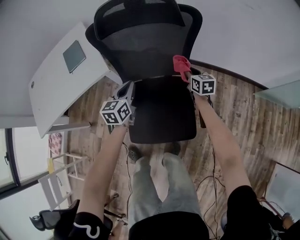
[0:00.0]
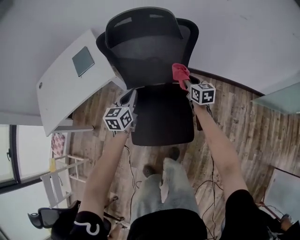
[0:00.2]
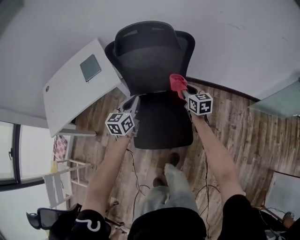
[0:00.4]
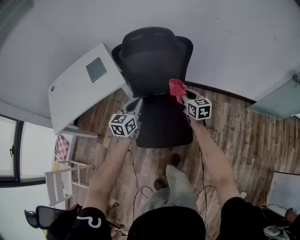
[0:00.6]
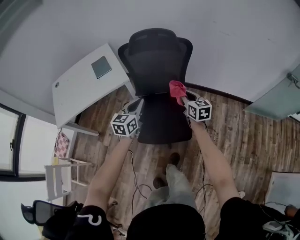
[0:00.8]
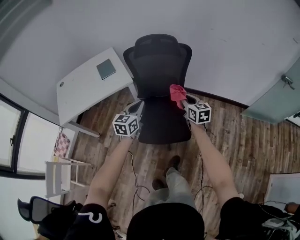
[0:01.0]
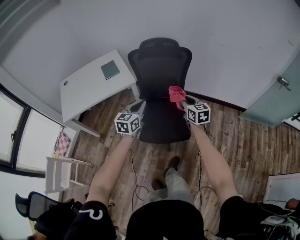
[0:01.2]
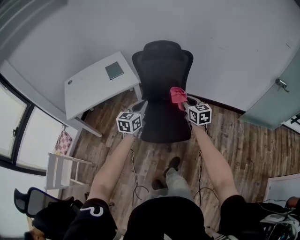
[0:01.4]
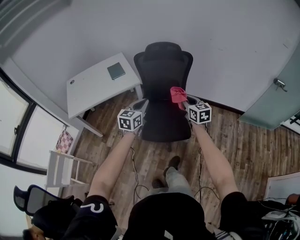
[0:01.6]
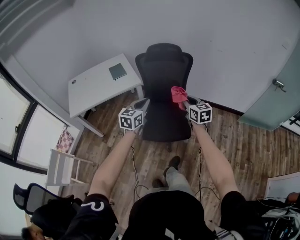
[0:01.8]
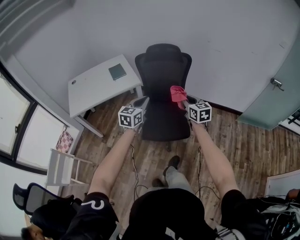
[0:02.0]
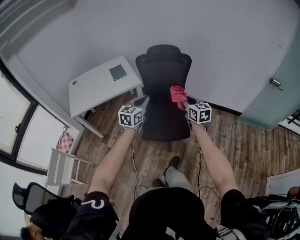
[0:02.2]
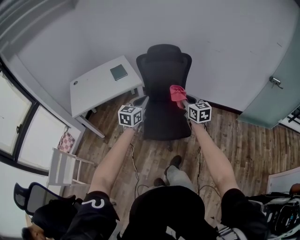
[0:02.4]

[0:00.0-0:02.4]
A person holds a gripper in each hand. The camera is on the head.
0:00.0 to 0:01.2: Both grippers travel together backward and upward, about 40 cm.
0:01.2 to 0:02.4: The grippers both shift backward and upward by roughly 15 cm.

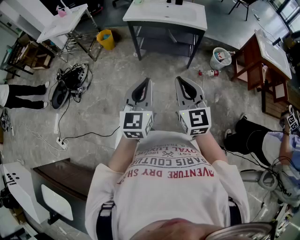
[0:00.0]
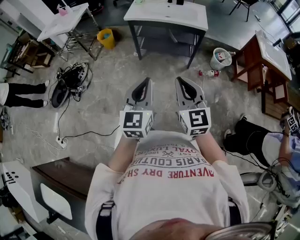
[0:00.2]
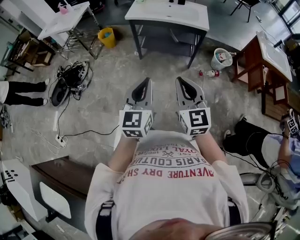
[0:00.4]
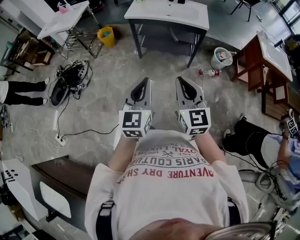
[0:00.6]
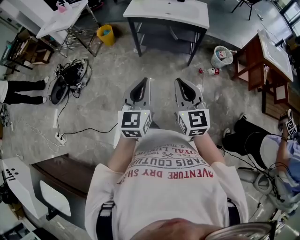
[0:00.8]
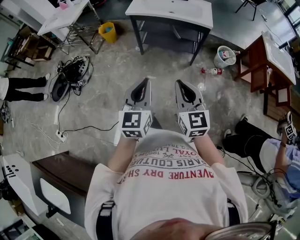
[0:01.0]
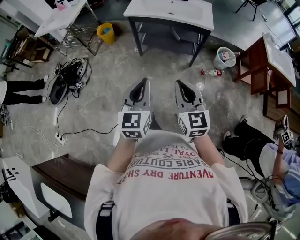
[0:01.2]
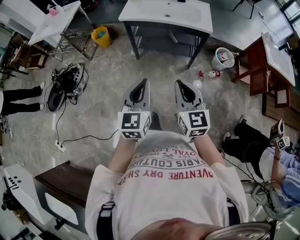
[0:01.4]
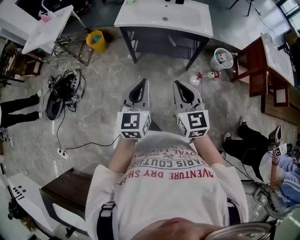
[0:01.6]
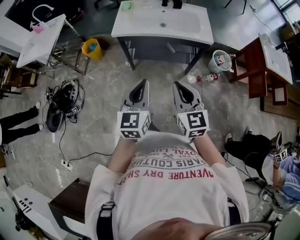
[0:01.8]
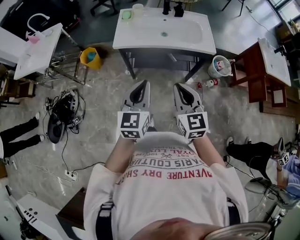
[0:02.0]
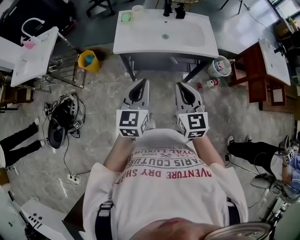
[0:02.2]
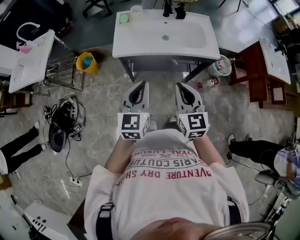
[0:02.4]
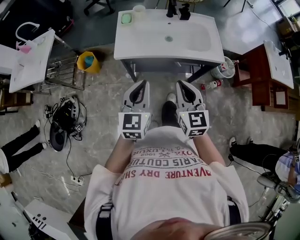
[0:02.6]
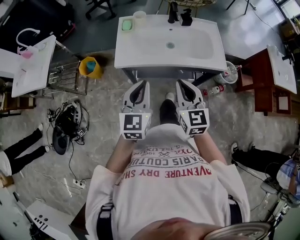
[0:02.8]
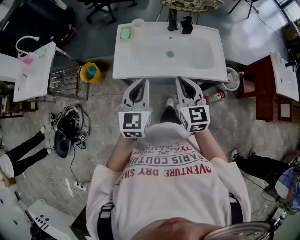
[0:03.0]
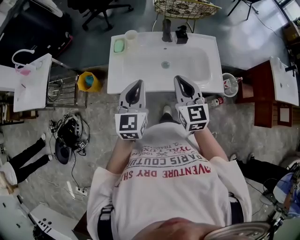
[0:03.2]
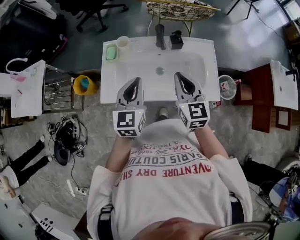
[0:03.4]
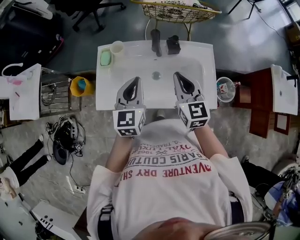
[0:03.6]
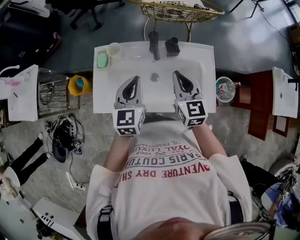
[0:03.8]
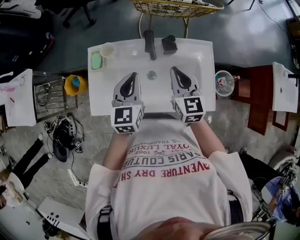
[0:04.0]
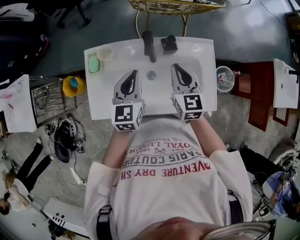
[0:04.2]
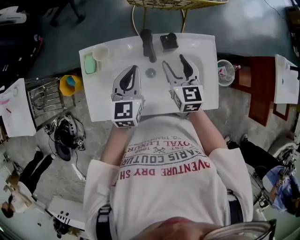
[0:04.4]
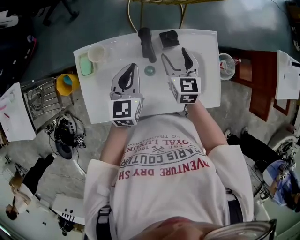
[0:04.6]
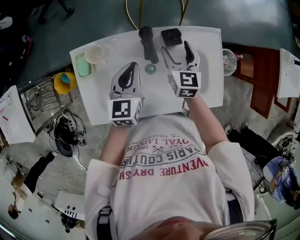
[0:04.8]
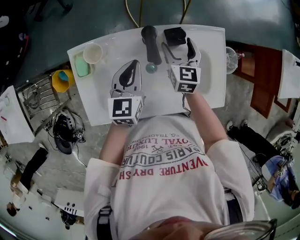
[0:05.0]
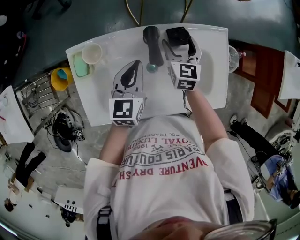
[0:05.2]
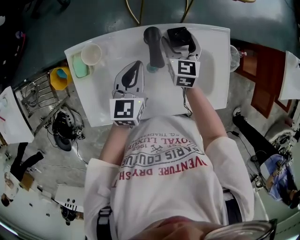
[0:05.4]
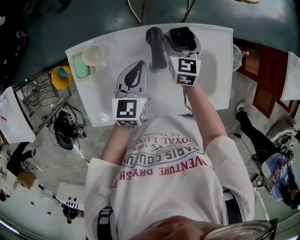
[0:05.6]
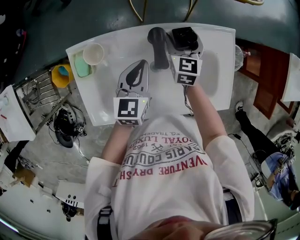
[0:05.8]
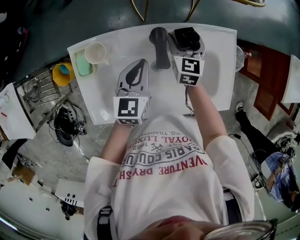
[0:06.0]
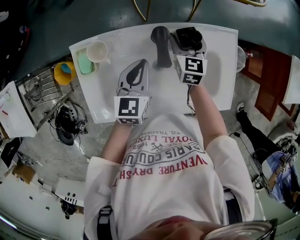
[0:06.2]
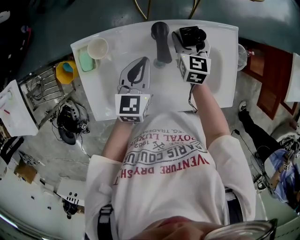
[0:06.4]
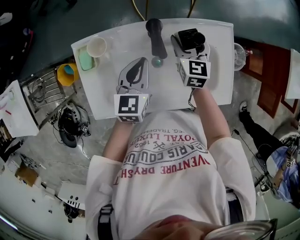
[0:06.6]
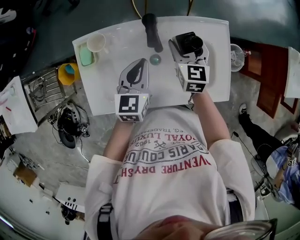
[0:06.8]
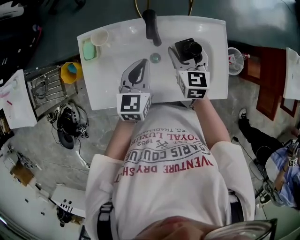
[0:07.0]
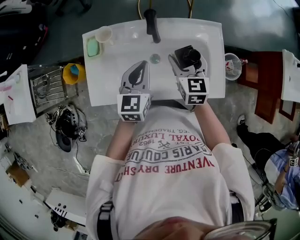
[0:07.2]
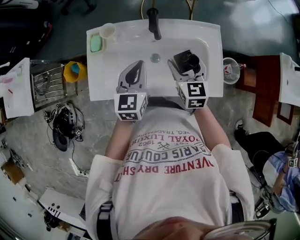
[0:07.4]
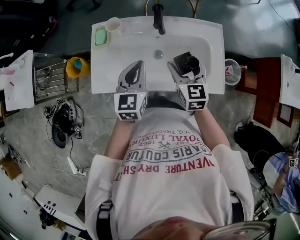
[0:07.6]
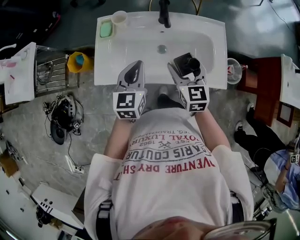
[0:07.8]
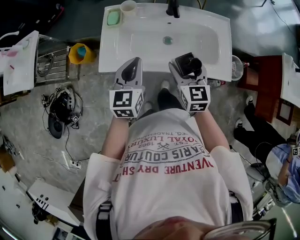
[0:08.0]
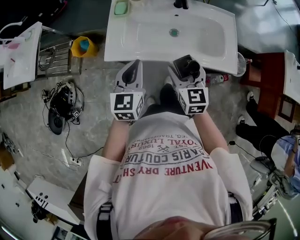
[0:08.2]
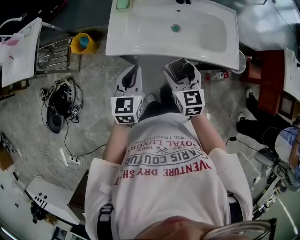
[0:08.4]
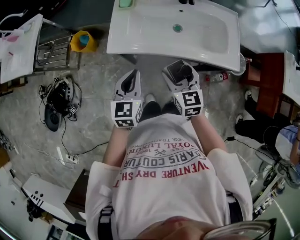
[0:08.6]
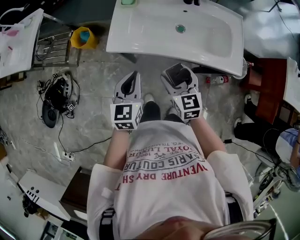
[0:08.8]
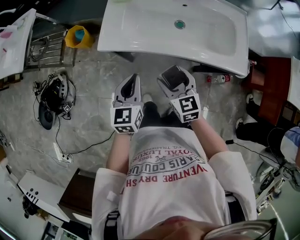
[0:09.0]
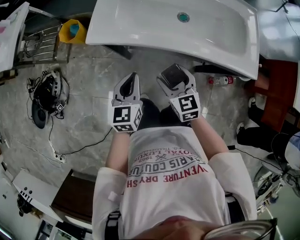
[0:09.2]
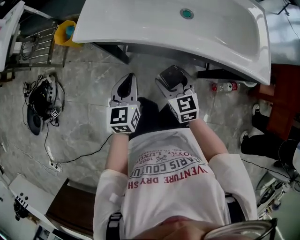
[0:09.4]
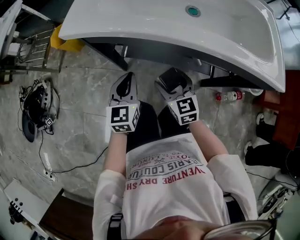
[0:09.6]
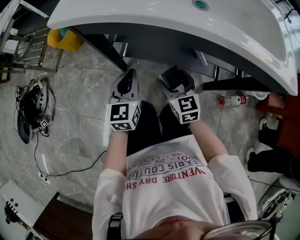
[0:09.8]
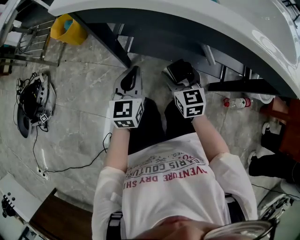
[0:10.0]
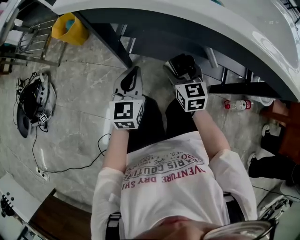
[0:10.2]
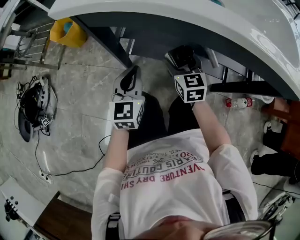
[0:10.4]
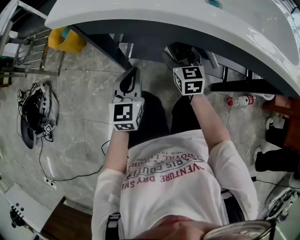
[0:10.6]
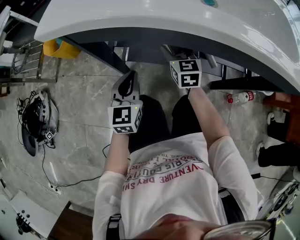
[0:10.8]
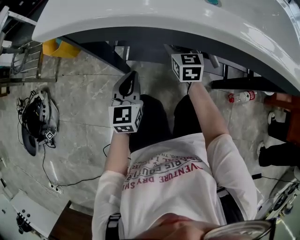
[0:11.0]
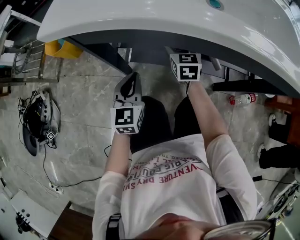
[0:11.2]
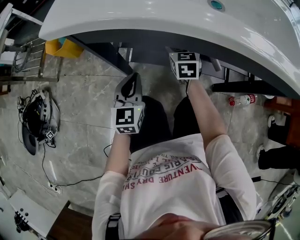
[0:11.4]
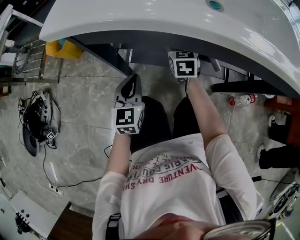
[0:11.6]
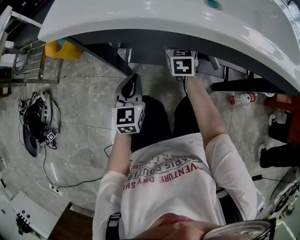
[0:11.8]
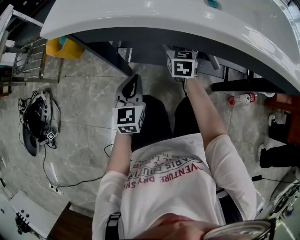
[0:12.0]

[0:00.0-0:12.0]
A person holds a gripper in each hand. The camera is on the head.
0:00.0 to 0:01.6: The two grippers go roughly 20 cm forward.
0:01.6 to 0:03.0: Both grippers are carried forward, roughly 40 cm.
0:03.0 to 0:04.4: The grippers both shift forward by approximately 30 cm. The right gripper opens up.
0:04.4 to 0:06.0: The right gripper is displaced downward and forward by roughly 15 cm. Meanwhile the left gripper shifts approximately 10 cm downward.
0:06.0 to 0:07.6: Both grippers move backward and upward, roughly 20 cm.
0:07.6 to 0:09.0: The grippers both shift backward, to the left and downward by some 25 cm.
0:09.0 to 0:10.4: Both grippers travel together downward, approximately 30 cm.
0:10.4 to 0:12.0: The right gripper moves forward, approximately 10 cm.

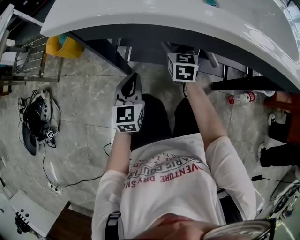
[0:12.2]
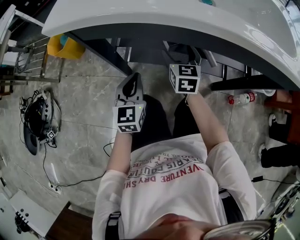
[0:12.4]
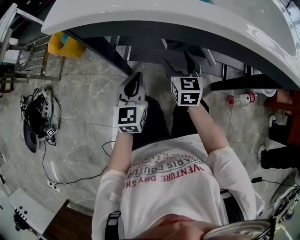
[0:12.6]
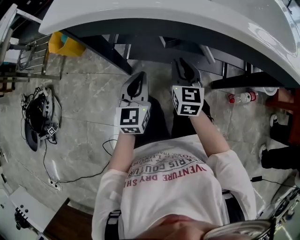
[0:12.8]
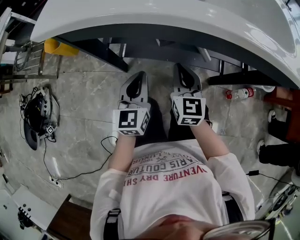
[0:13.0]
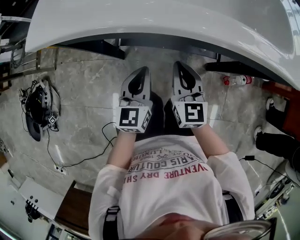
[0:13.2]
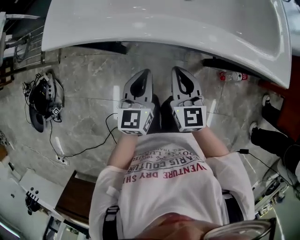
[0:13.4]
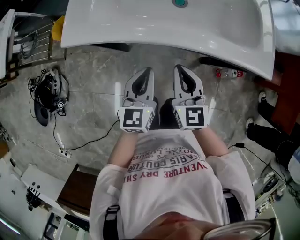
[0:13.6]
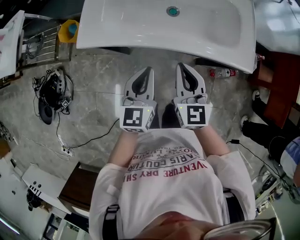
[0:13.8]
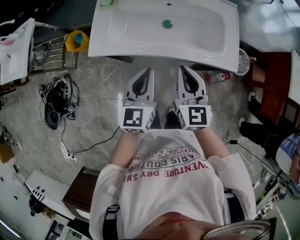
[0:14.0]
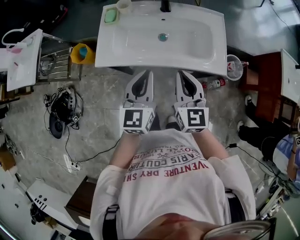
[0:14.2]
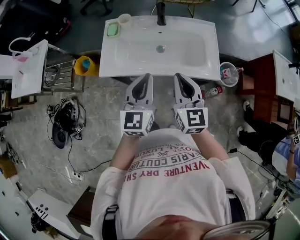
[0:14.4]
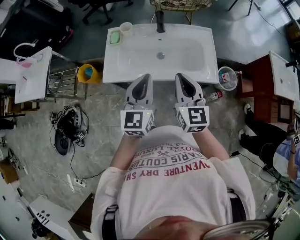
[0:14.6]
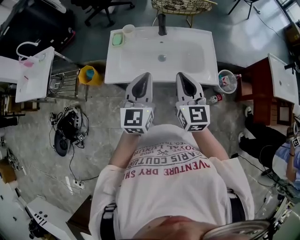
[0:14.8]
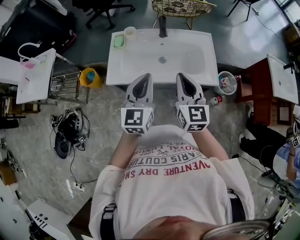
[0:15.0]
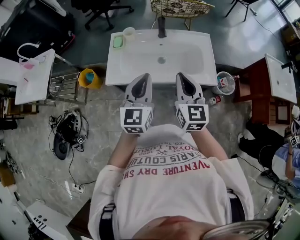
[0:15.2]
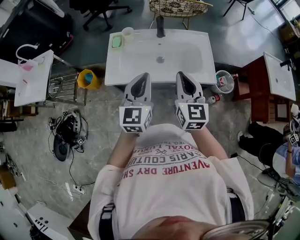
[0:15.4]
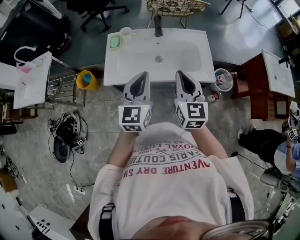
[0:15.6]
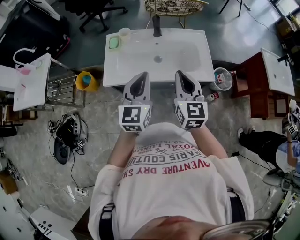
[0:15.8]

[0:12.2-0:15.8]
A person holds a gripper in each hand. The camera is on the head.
0:12.2 to 0:14.0: The two grippers go about 40 cm upward. The right gripper closes its fingers.
0:14.0 to 0:15.8: The grippers both shift upward by roughly 20 cm.

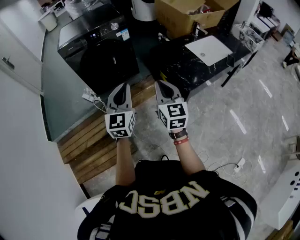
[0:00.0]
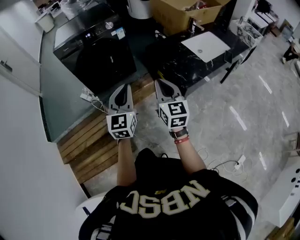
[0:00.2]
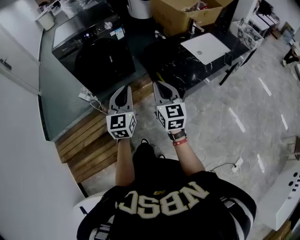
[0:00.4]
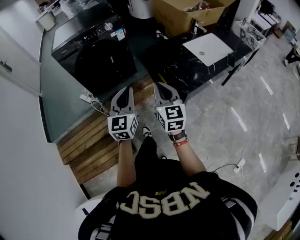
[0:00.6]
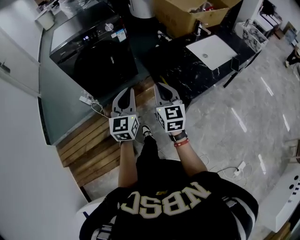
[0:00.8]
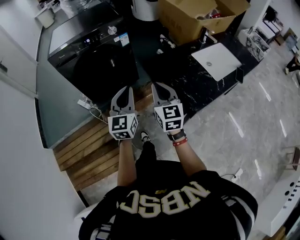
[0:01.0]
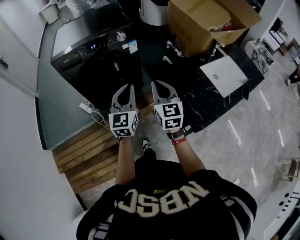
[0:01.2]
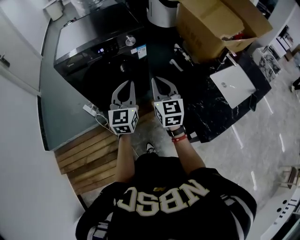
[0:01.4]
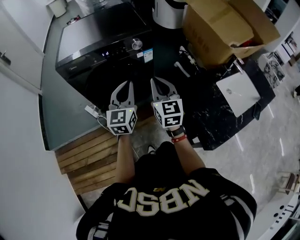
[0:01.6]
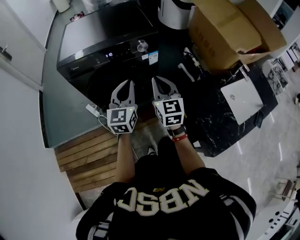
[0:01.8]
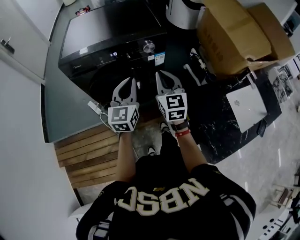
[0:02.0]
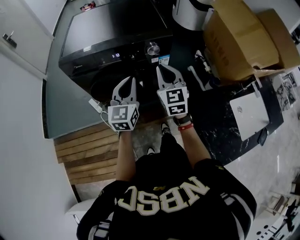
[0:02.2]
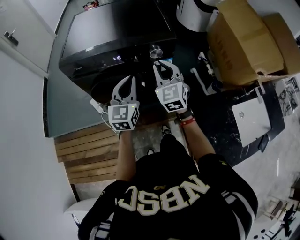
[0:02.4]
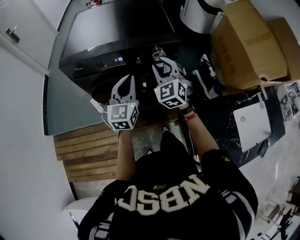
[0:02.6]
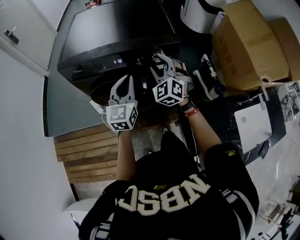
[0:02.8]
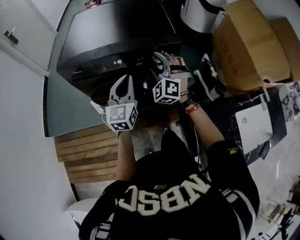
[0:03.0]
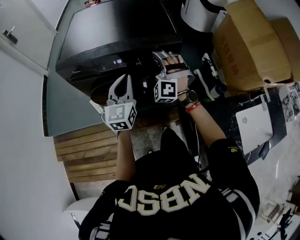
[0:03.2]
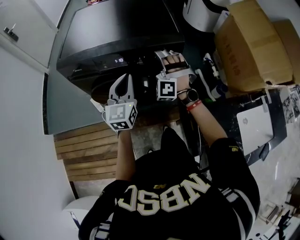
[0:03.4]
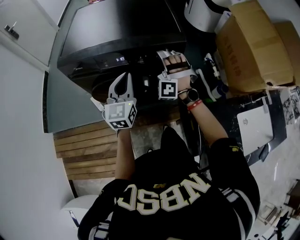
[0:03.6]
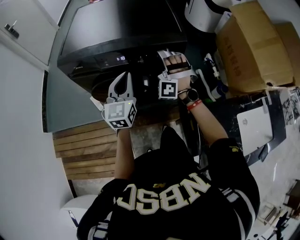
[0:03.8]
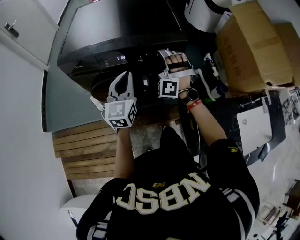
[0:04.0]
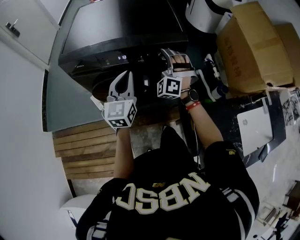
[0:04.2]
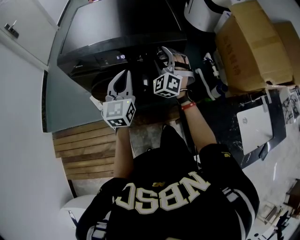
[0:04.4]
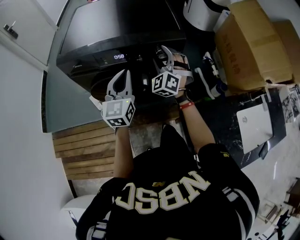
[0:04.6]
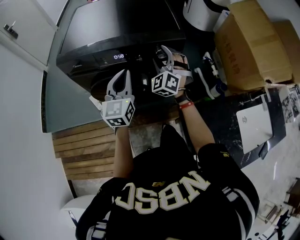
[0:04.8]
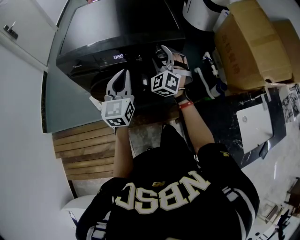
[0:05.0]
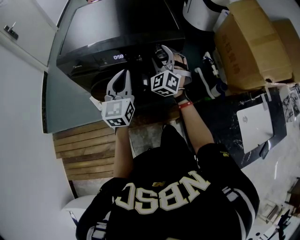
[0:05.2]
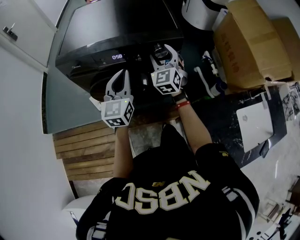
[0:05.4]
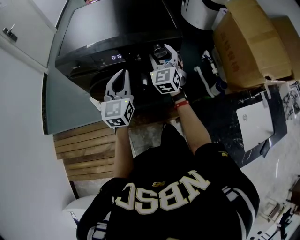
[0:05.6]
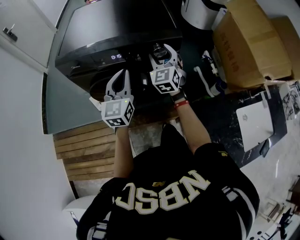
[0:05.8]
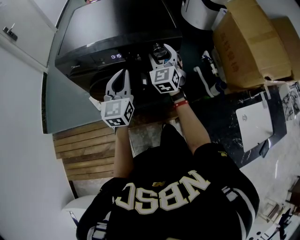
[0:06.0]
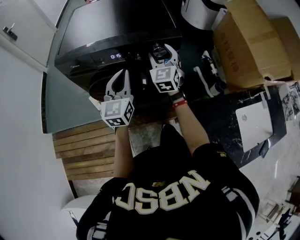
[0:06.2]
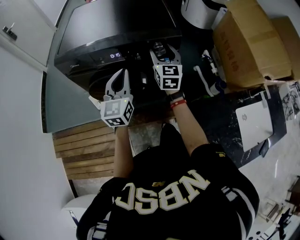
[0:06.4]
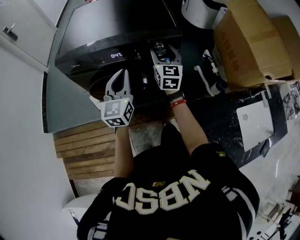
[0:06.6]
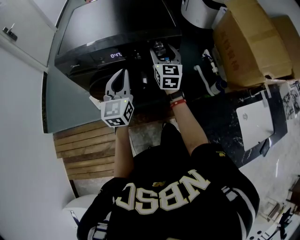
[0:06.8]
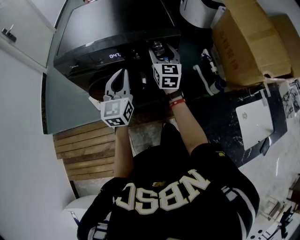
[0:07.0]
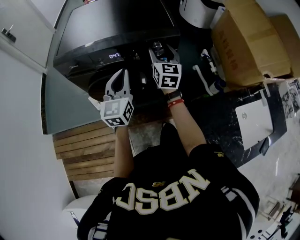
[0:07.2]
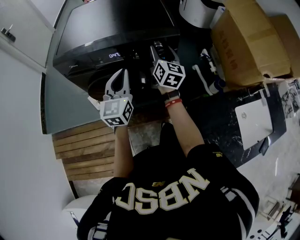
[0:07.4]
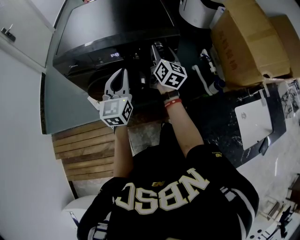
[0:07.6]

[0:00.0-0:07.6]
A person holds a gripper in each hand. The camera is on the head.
0:00.0 to 0:01.6: Both grippers move forward, roughly 35 cm.
0:01.6 to 0:03.0: The left gripper heads forward, covering roughly 15 cm. Meanwhile the right gripper is displaced forward by some 25 cm, rolls counterclockwise, seen from behind, by about 70 degrees, and opens up.
0:04.6 to 0:06.0: The right gripper changes its angle by roughly 30 degrees.
0:06.0 to 0:07.6: The right gripper rolls clockwise, seen from behind, by approximately 60 degrees.
